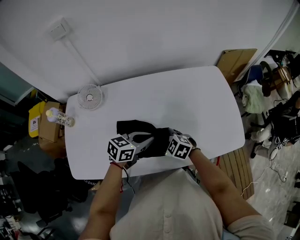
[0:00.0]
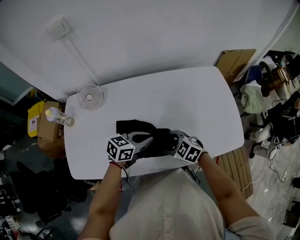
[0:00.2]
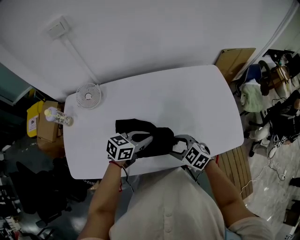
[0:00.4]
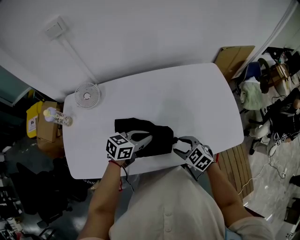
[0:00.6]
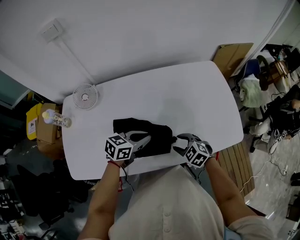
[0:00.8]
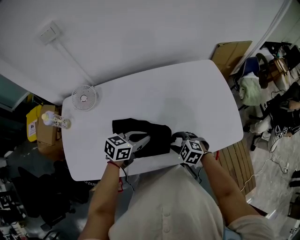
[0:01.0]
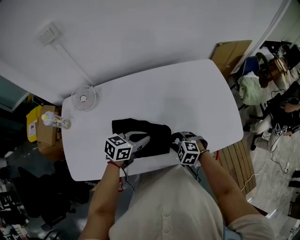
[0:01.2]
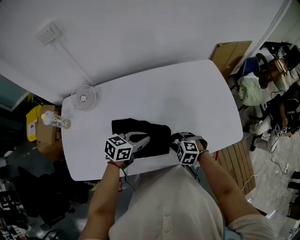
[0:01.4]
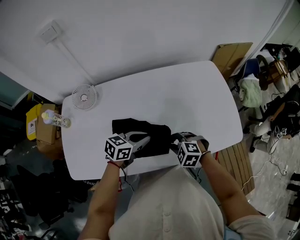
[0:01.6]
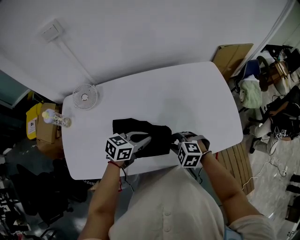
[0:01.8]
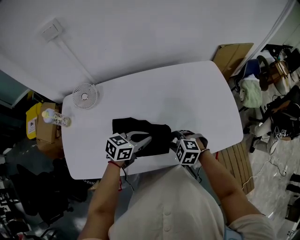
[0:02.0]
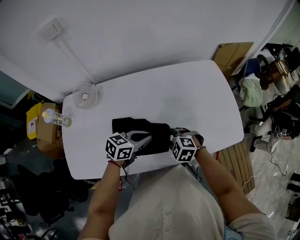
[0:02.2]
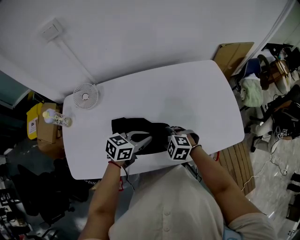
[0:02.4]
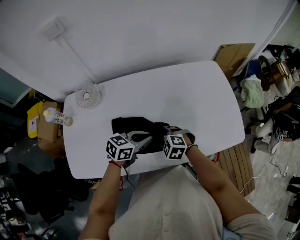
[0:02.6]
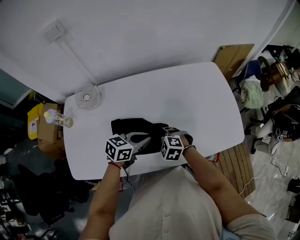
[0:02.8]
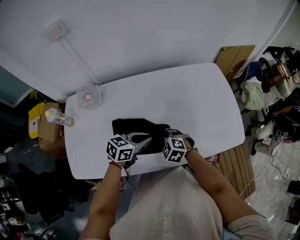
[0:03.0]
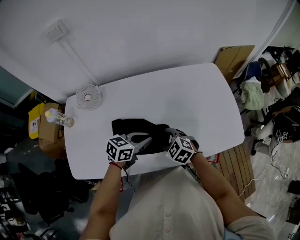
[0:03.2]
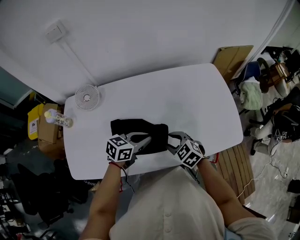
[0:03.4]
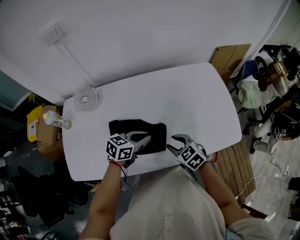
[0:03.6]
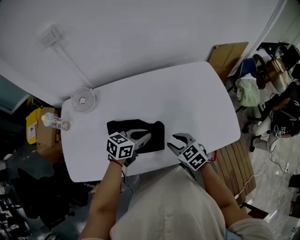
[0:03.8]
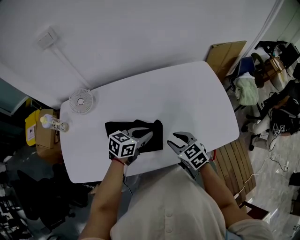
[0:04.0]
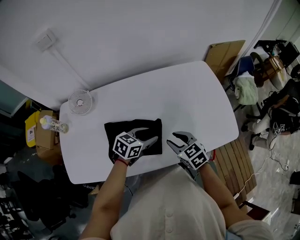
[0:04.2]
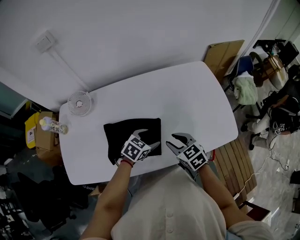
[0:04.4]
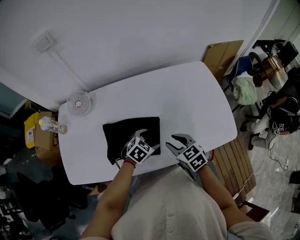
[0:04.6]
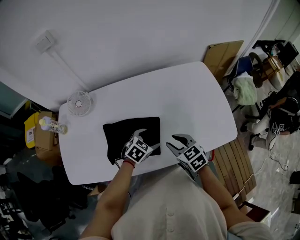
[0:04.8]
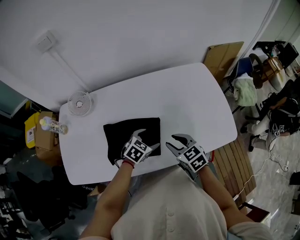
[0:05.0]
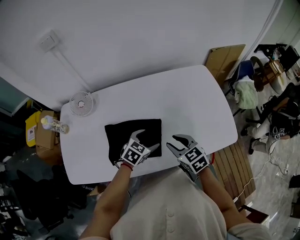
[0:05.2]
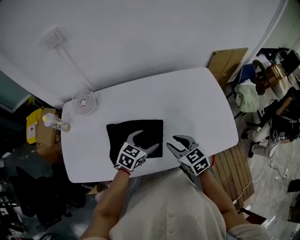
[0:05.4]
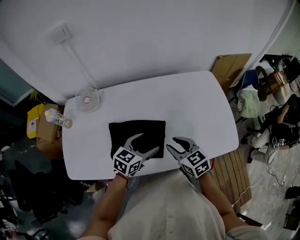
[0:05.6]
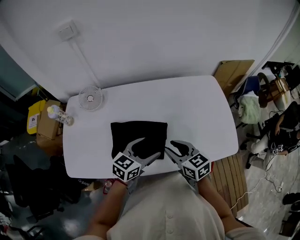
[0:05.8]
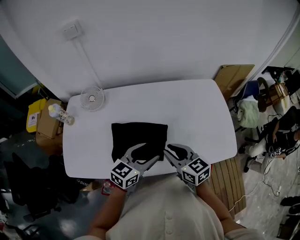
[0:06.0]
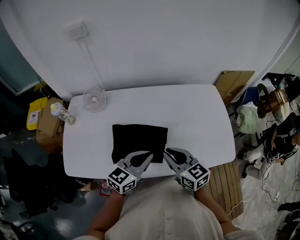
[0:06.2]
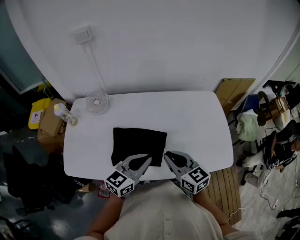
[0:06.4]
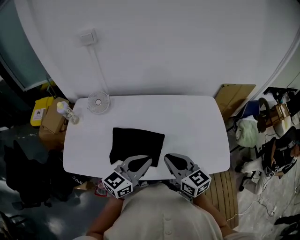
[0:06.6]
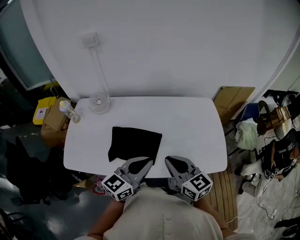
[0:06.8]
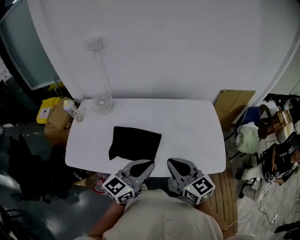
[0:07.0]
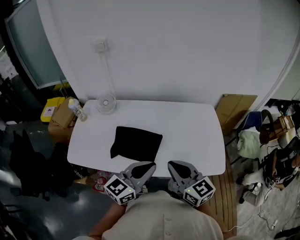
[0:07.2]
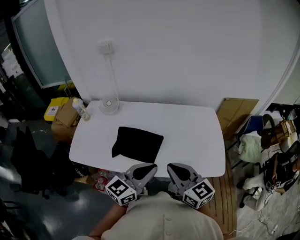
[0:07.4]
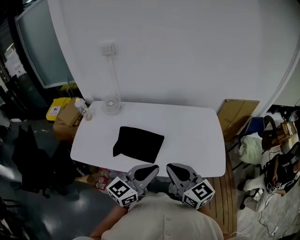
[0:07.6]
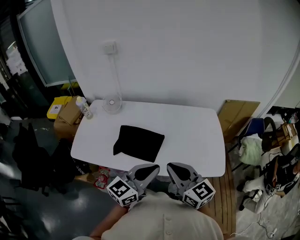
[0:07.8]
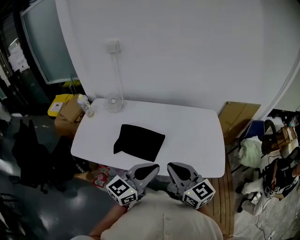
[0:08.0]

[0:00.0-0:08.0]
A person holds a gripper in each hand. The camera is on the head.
0:00.0 to 0:01.6: The right gripper changes place by about 10 cm, and closes its fingers.
0:01.6 to 0:03.2: The right gripper is displaced to the left by about 5 cm.
0:03.2 to 0:04.8: The right gripper moves to the right, about 10 cm, and rotates approximately 30 degrees. Meanwhile the left gripper travels downward and to the right by some 10 cm, rotates approximately 30 degrees, and opens up.
0:04.8 to 0:06.4: The left gripper is displaced upward by some 20 cm, angles its fingers upward, by approximately 40 degrees, and closes up, while the right gripper goes some 15 cm upward, turns by some 20 degrees, and closes up.
0:06.4 to 0:08.0: Both grippers travel together backward, upward and to the right, some 20 cm.

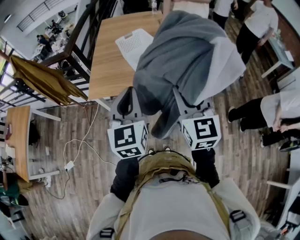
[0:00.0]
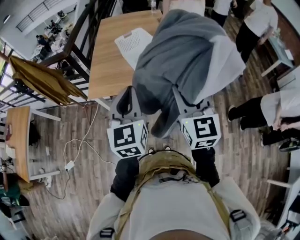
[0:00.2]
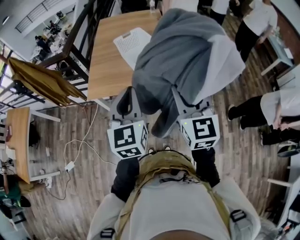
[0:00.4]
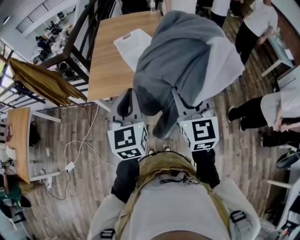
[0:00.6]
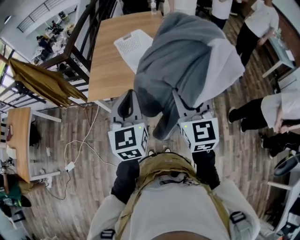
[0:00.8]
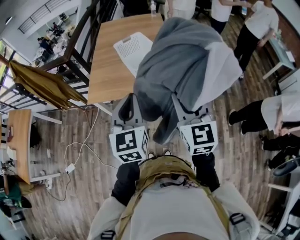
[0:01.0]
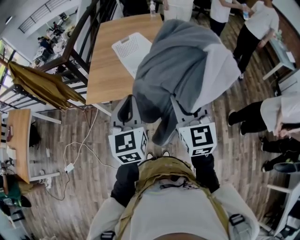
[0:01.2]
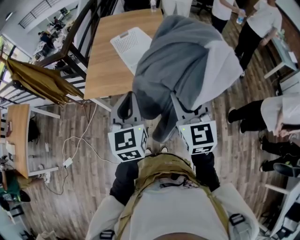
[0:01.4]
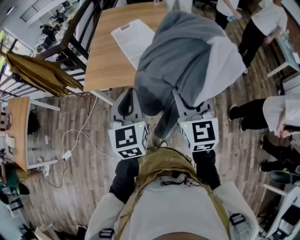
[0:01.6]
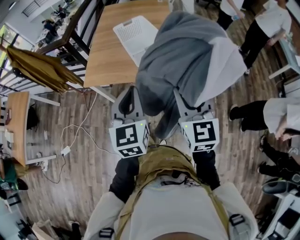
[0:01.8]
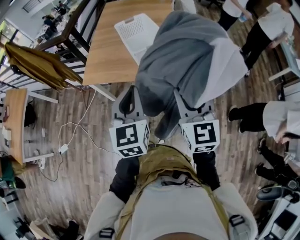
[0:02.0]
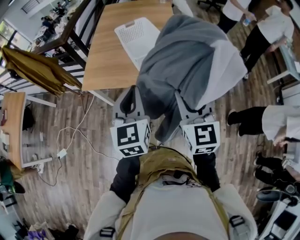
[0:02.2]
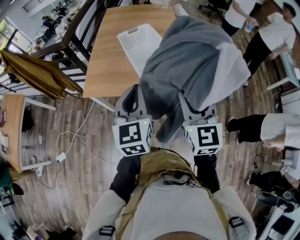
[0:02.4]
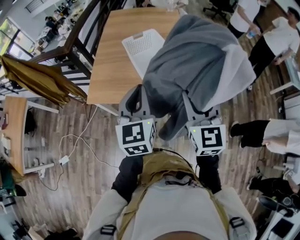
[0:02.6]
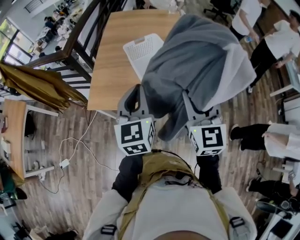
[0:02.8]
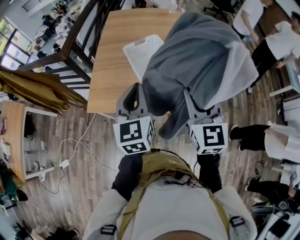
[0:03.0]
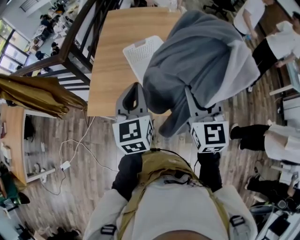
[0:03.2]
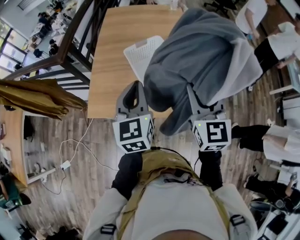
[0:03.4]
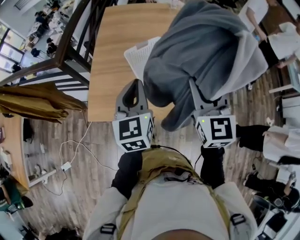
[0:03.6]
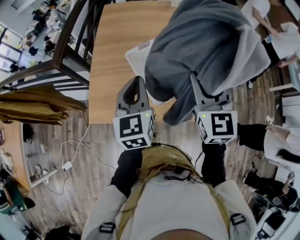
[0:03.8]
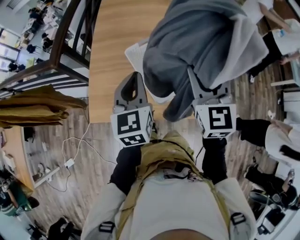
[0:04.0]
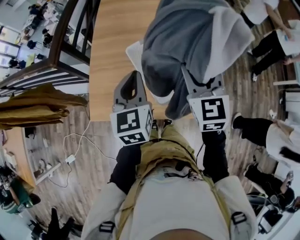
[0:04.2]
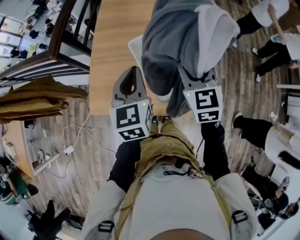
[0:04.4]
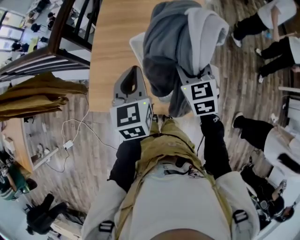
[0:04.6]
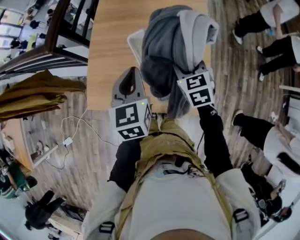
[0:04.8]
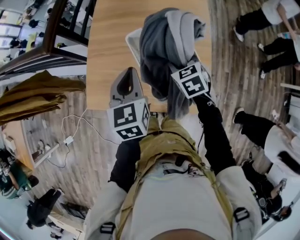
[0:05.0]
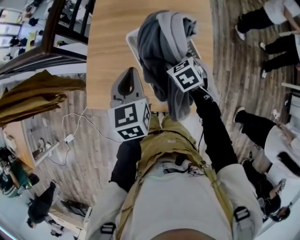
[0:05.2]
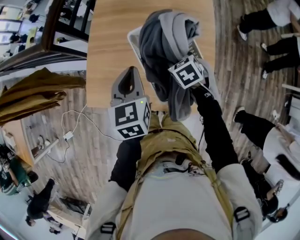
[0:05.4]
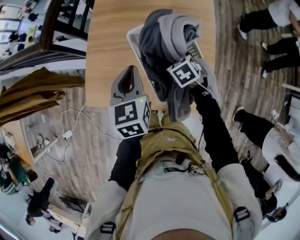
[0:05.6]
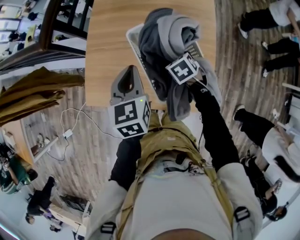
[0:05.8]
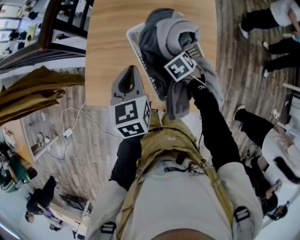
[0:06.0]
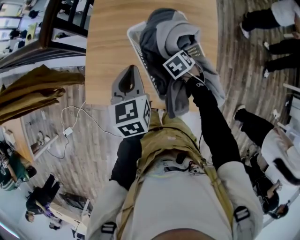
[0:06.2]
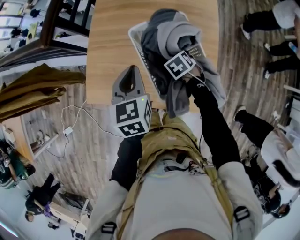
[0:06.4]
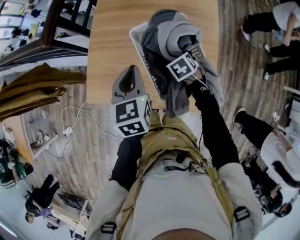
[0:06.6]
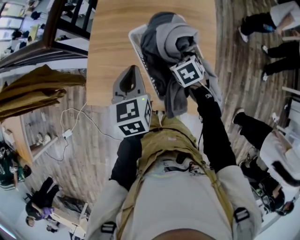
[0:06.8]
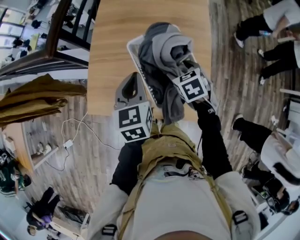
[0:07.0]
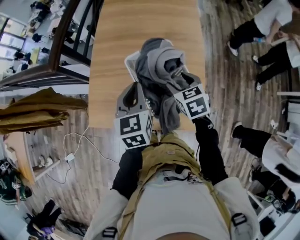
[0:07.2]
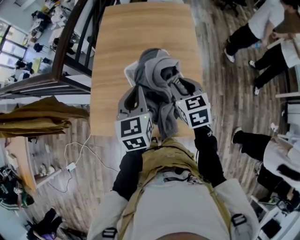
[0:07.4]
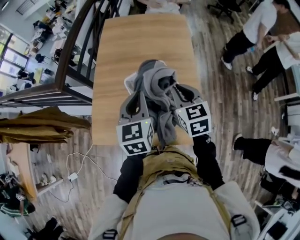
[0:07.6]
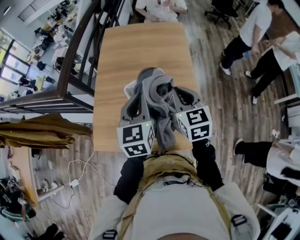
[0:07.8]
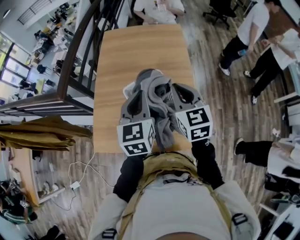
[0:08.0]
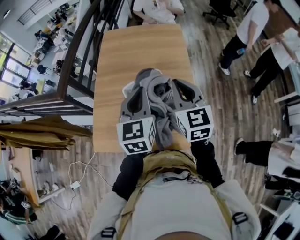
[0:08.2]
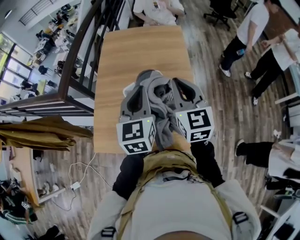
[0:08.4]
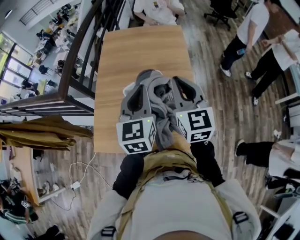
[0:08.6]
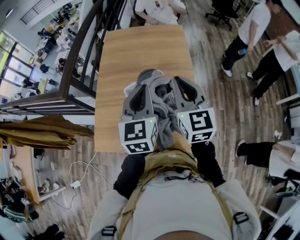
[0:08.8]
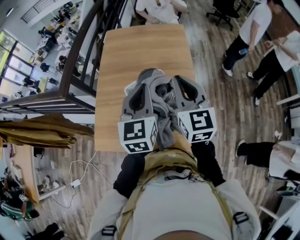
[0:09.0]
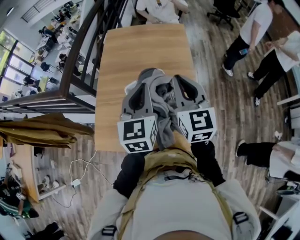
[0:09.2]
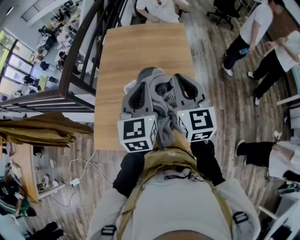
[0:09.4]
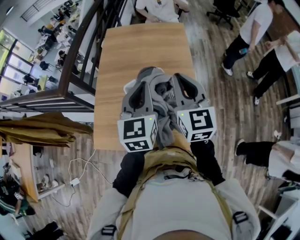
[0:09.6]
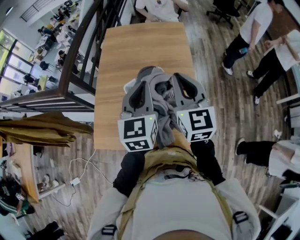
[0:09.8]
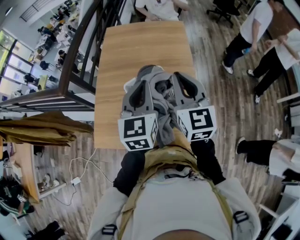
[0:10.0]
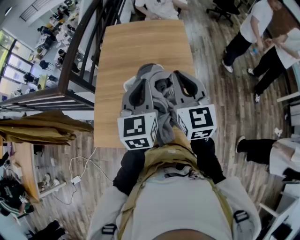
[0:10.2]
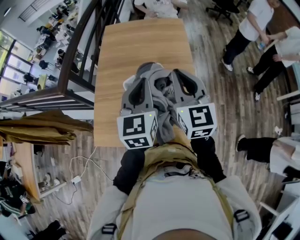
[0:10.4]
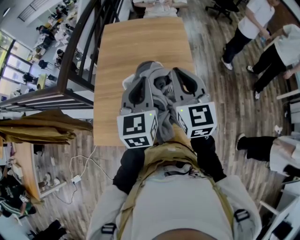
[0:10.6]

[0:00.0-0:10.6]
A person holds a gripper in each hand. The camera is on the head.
0:00.0 to 0:01.6: The grippers both shift to the right by roughly 5 cm.
0:01.6 to 0:03.0: Both grippers travel together forward, roughly 25 cm.
0:03.0 to 0:04.6: The grippers both shift forward and downward by about 25 cm. The right gripper swivels approximately 30 degrees.
0:04.6 to 0:06.0: The left gripper travels downward by roughly 5 cm. The right gripper heads downward, covering roughly 25 cm, and tilts its fingers about 40 degrees downward.
0:06.0 to 0:07.6: The left gripper moves upward, roughly 10 cm, while the right gripper travels upward by some 25 cm, tilts its fingers about 40 degrees upward, and closes its fingers.
0:07.6 to 0:09.0: The right gripper is displaced upward by roughly 10 cm, and changes its angle by about 20 degrees; the left gripper travels upward by about 5 cm.
0:09.0 to 0:10.6: Both grippers stay put.

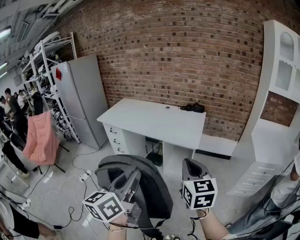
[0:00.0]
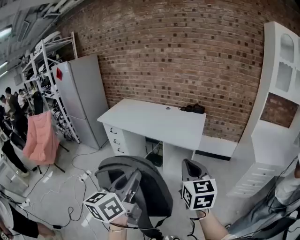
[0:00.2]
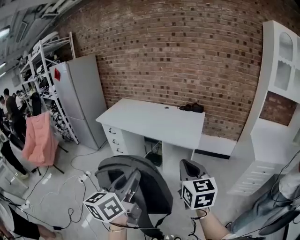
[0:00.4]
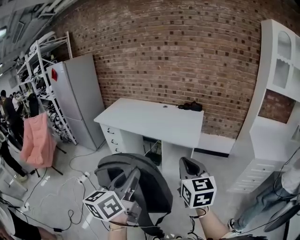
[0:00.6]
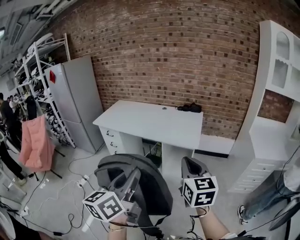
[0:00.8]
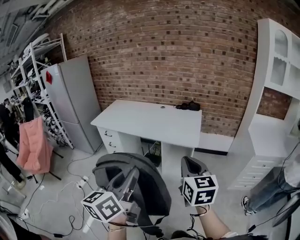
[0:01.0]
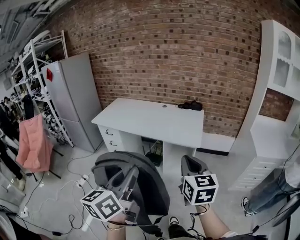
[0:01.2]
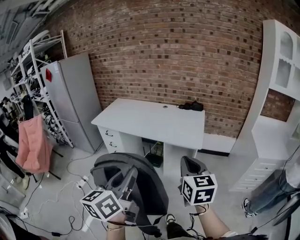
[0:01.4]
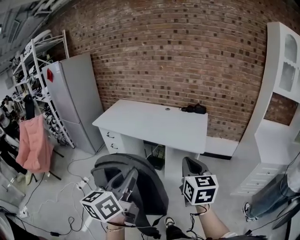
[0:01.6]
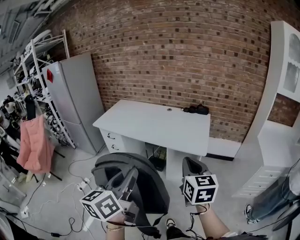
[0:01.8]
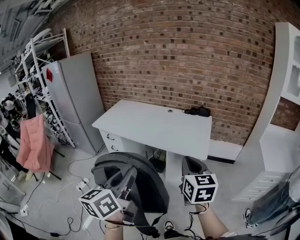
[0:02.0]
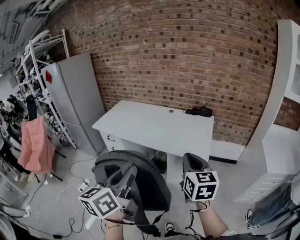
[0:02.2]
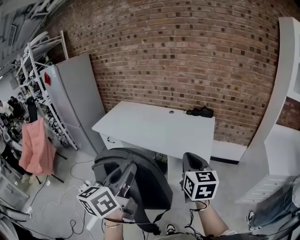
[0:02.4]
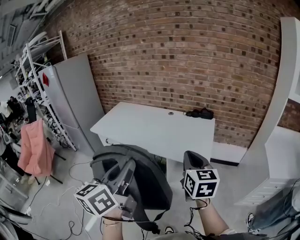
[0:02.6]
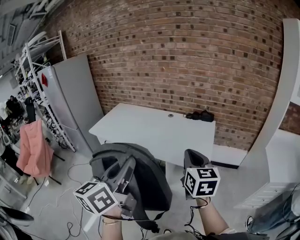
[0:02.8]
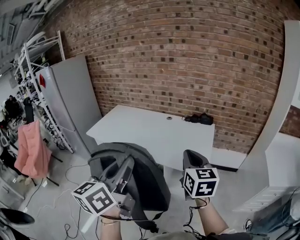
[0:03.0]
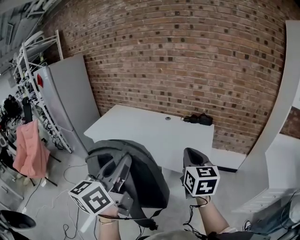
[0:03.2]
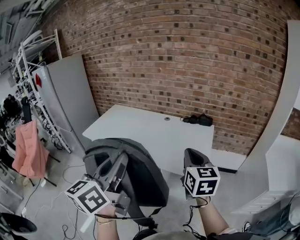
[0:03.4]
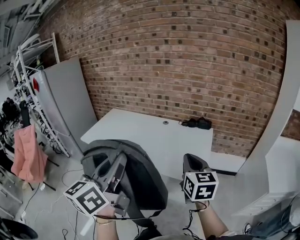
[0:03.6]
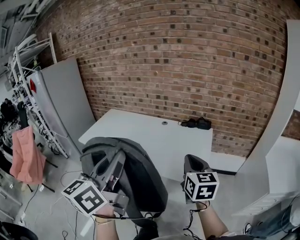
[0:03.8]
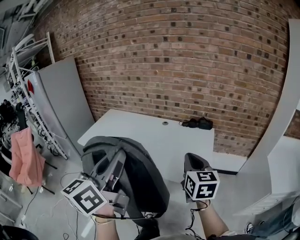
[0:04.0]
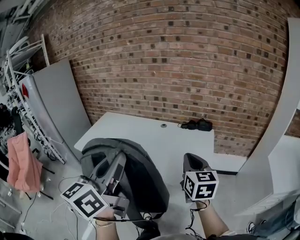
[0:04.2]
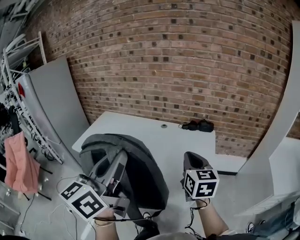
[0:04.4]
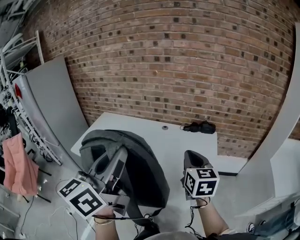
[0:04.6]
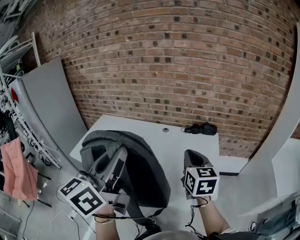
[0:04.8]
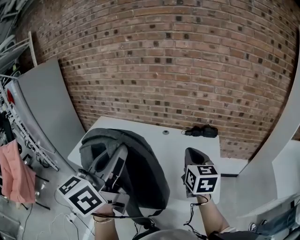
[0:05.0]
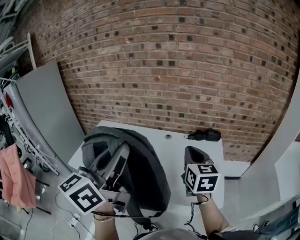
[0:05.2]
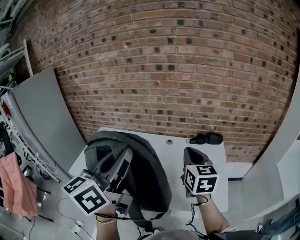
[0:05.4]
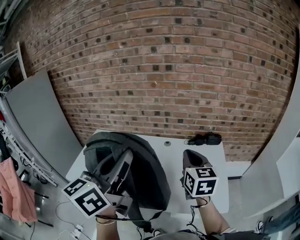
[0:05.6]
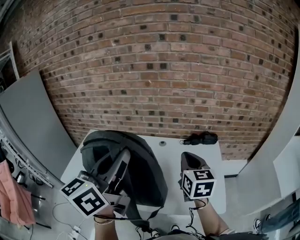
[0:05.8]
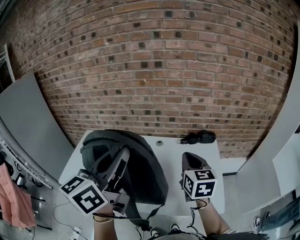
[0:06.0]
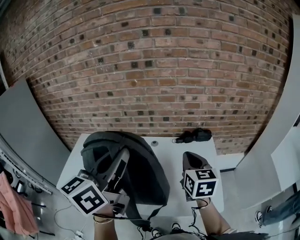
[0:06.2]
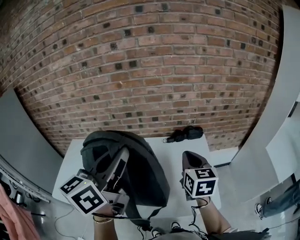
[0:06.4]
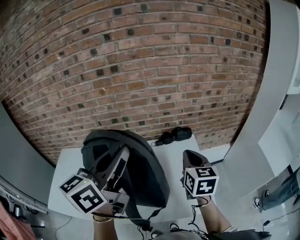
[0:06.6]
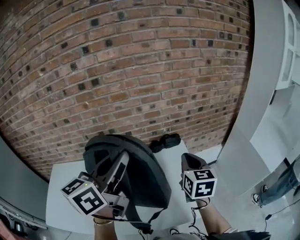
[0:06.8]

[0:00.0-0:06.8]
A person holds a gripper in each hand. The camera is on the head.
0:00.0 to 0:01.4: The two grippers go approximately 10 cm to the left and forward.
0:01.4 to 0:02.8: Both grippers move forward, some 25 cm.
0:02.8 to 0:04.0: Both grippers travel together forward, roughly 15 cm.
0:04.0 to 0:05.4: Both grippers travel together forward and to the left, some 25 cm.
0:05.4 to 0:06.8: The right gripper is displaced to the right and forward by some 25 cm, and changes its angle by roughly 20 degrees, while the left gripper goes about 25 cm forward and to the right, and rotates about 30 degrees.
